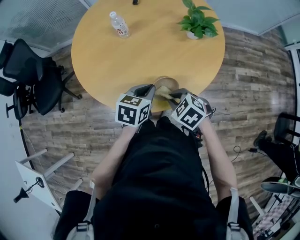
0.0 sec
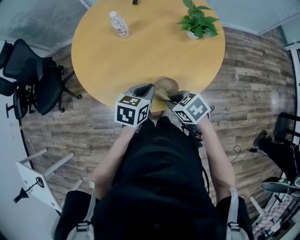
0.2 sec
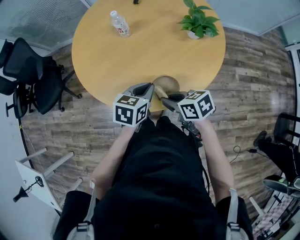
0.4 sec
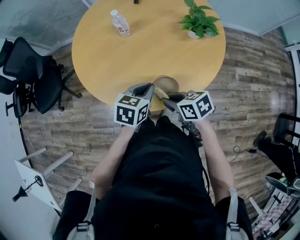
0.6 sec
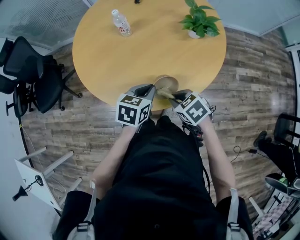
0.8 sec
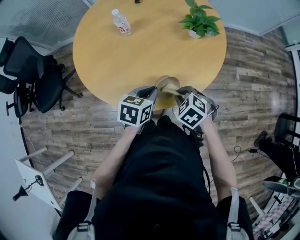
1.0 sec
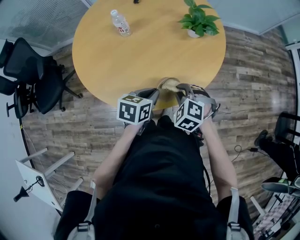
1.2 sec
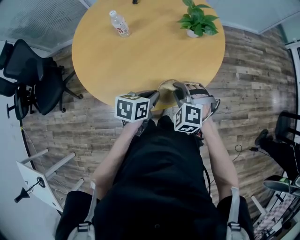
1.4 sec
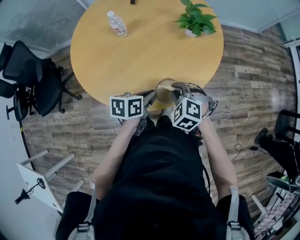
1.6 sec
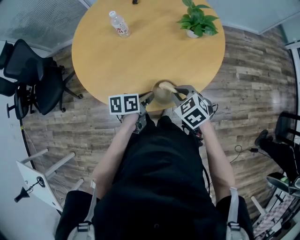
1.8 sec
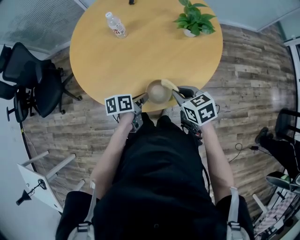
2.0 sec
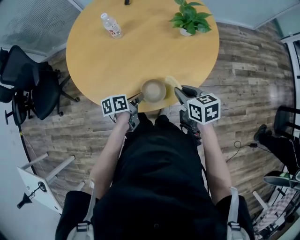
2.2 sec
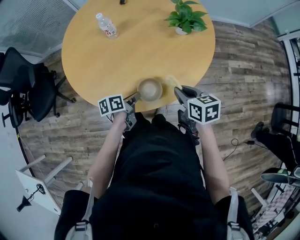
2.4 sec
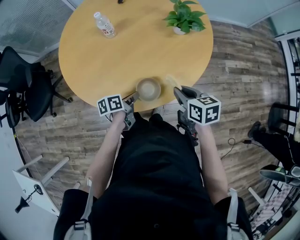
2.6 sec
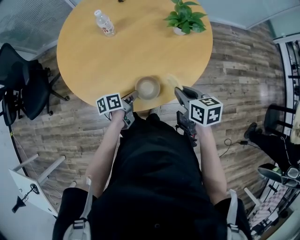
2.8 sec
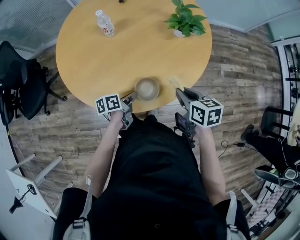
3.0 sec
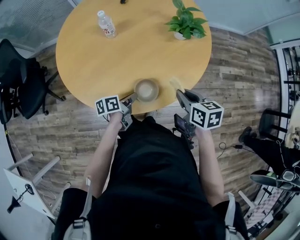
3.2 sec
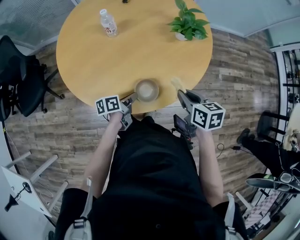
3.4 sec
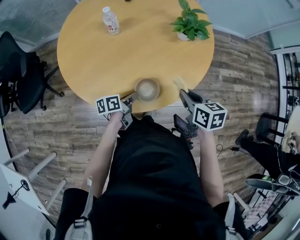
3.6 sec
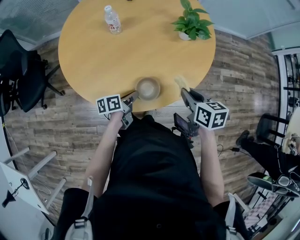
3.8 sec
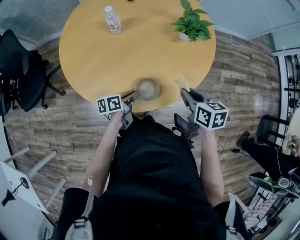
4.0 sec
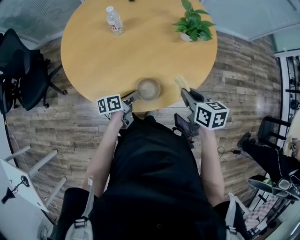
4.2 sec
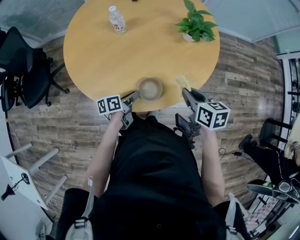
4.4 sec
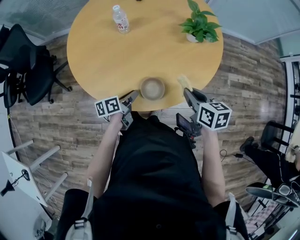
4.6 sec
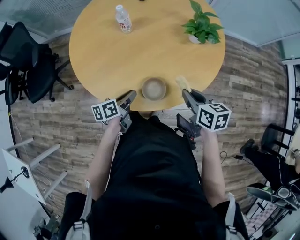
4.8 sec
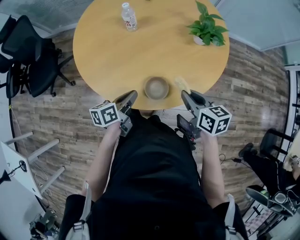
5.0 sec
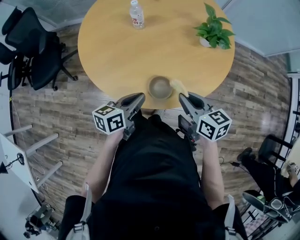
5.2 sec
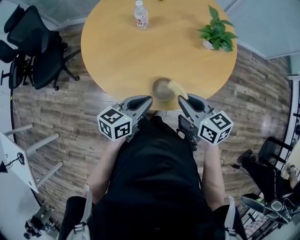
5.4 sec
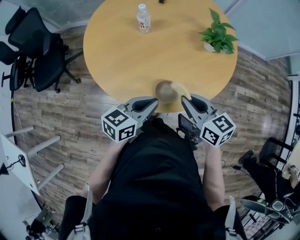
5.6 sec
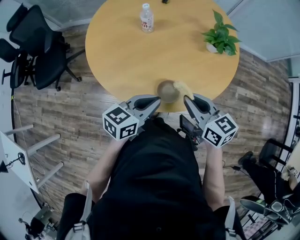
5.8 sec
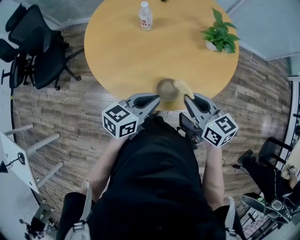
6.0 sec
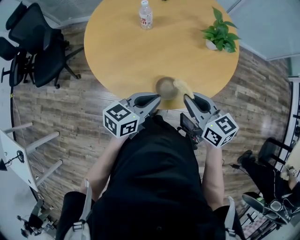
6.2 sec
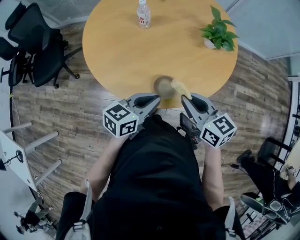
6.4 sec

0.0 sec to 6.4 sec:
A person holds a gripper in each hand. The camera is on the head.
0.0 sec to 1.6 sec: The right gripper turns by approximately 30 degrees. The left gripper rotates some 20 degrees.
1.6 sec to 3.2 sec: The left gripper travels downward by roughly 10 cm, and rotates approximately 30 degrees. The right gripper heads to the right, covering roughly 10 cm, and rolls clockwise, seen from behind, by approximately 70 degrees.
3.2 sec to 4.8 sec: The left gripper changes place by roughly 5 cm.
4.8 sec to 6.4 sec: The right gripper shifts some 10 cm to the left and upward, and swivels roughly 20 degrees. Meanwhile the left gripper heads upward and to the right, covering approximately 15 cm, and changes its angle by approximately 30 degrees.

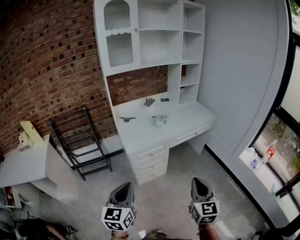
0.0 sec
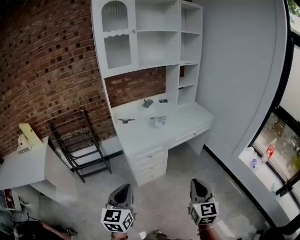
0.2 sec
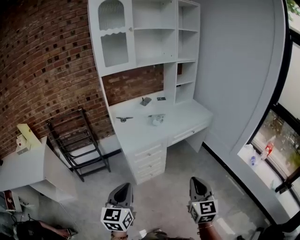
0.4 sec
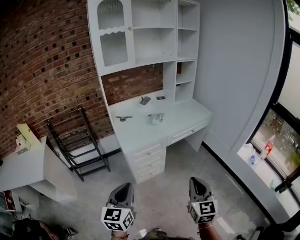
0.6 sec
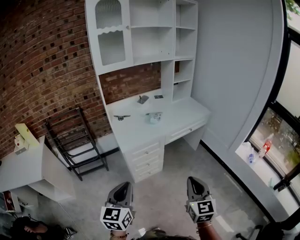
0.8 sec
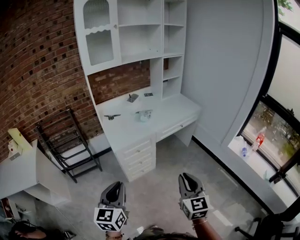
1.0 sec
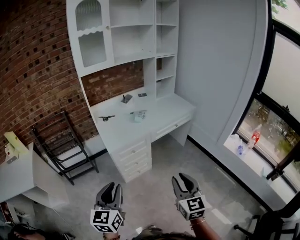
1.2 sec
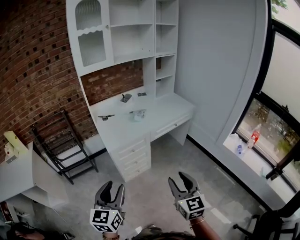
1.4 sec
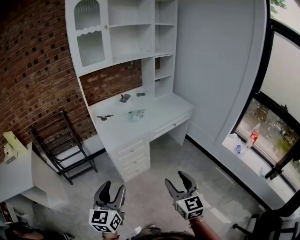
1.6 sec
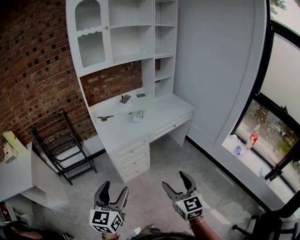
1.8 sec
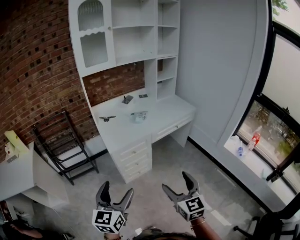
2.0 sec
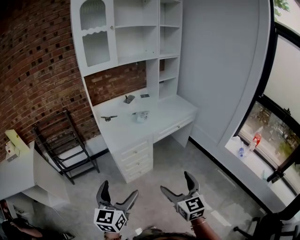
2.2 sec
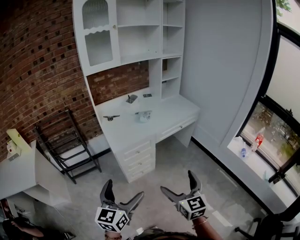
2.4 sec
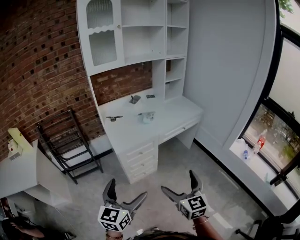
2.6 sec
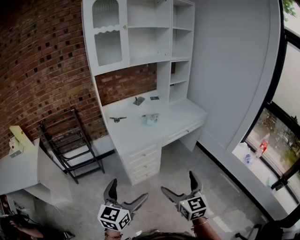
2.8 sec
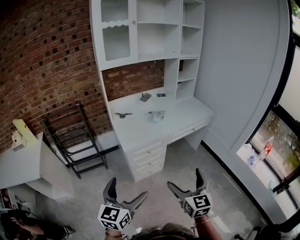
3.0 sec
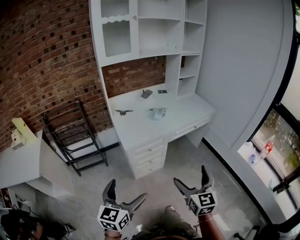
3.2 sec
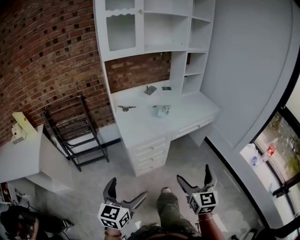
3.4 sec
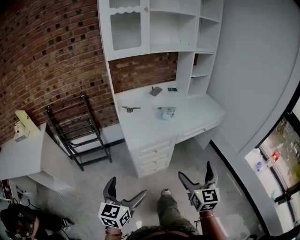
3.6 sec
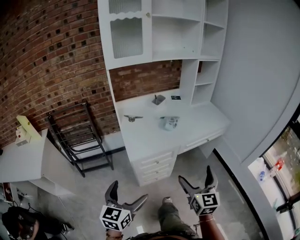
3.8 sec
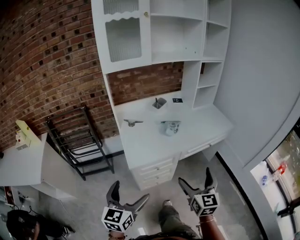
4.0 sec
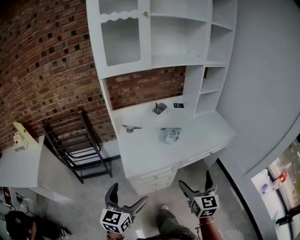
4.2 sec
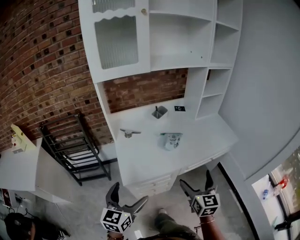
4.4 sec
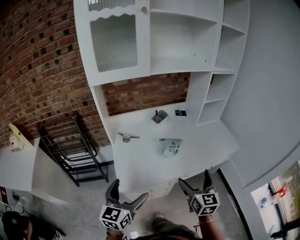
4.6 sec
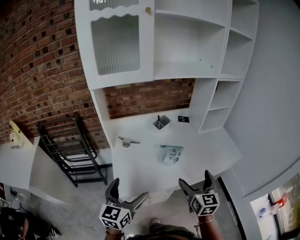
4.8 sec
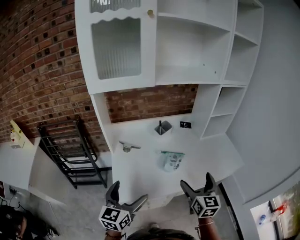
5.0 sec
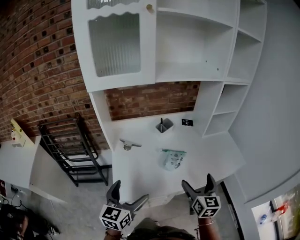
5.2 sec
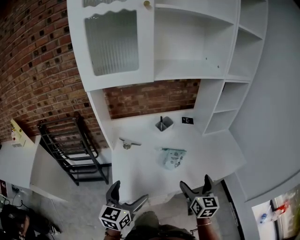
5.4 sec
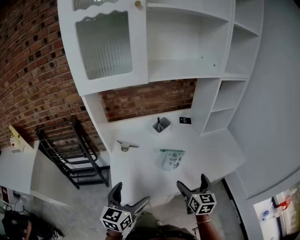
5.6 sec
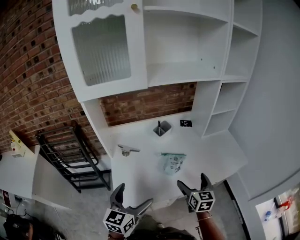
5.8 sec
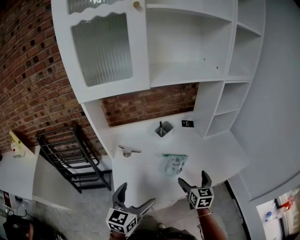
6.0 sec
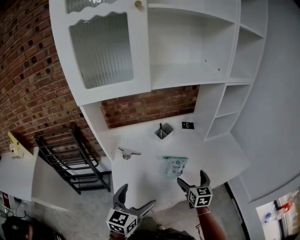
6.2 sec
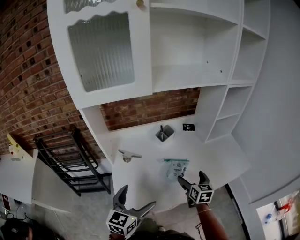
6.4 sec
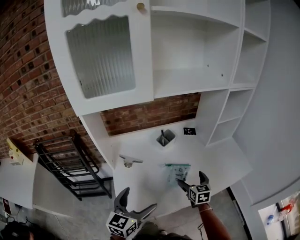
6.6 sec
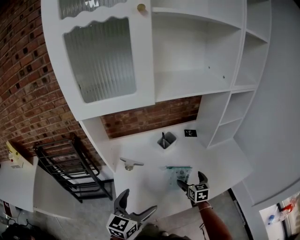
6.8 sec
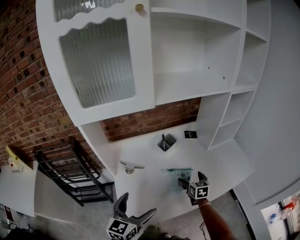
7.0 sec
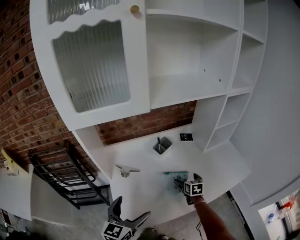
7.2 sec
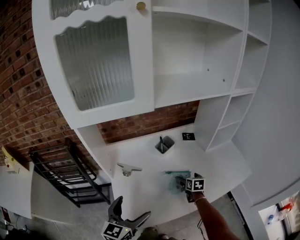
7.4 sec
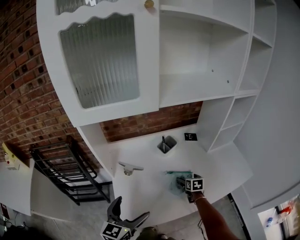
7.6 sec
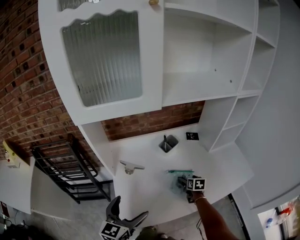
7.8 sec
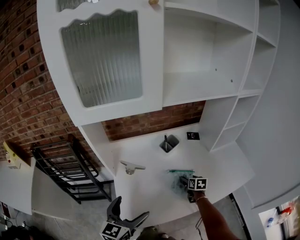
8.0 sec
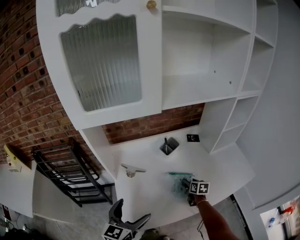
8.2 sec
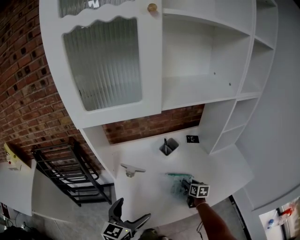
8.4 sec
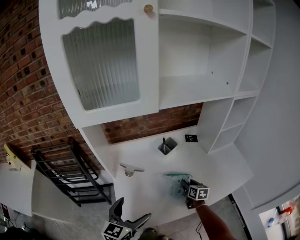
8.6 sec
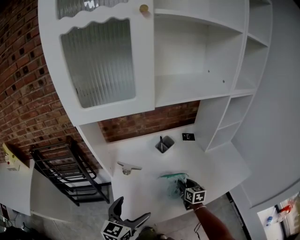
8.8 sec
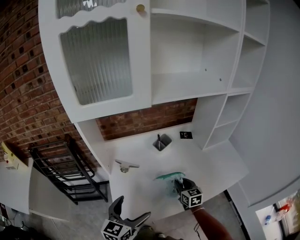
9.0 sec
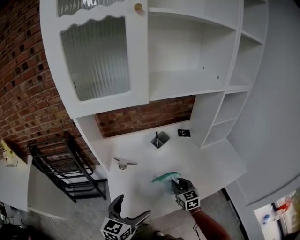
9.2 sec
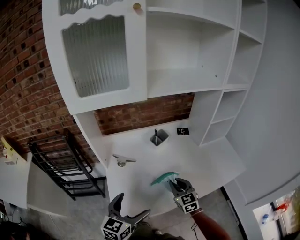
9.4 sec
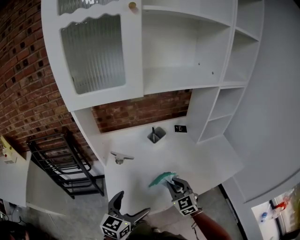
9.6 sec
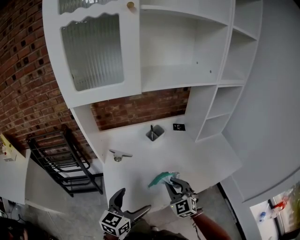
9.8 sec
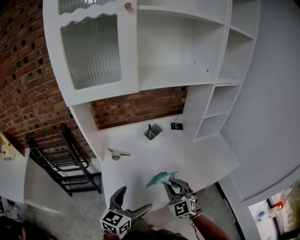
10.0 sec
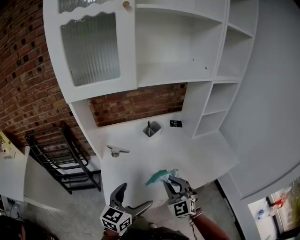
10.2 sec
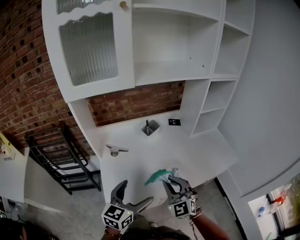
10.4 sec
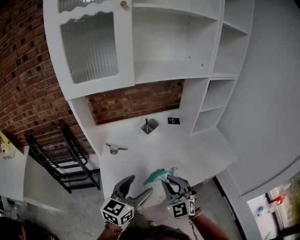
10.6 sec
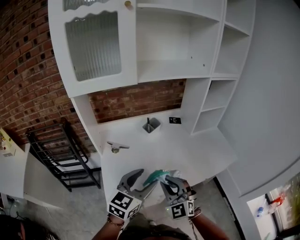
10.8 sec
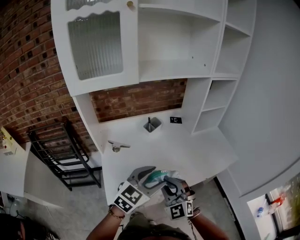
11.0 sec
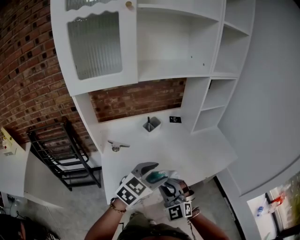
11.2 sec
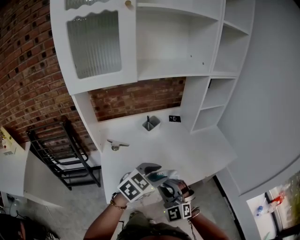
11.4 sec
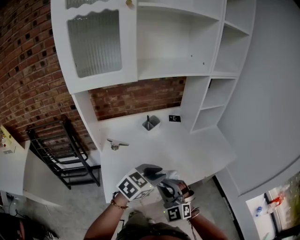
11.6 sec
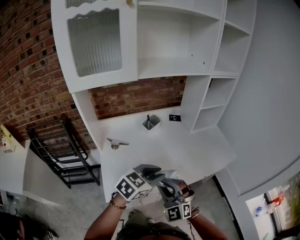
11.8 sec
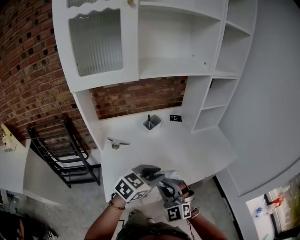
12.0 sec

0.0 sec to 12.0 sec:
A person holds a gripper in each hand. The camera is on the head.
0.0 sec to 1.6 sec: The right gripper opens. Meanwhile the left gripper opens.
1.6 sec to 3.0 sec: The right gripper goes about 5 cm forward, and opens up. Meanwhile the left gripper opens its fingers.
3.0 sec to 4.4 sec: Both grippers travel together forward, roughly 35 cm.
4.4 sec to 6.0 sec: The two grippers go approximately 20 cm forward.
6.0 sec to 7.6 sec: The right gripper goes approximately 20 cm forward and downward, and rotates roughly 30 degrees. Meanwhile the left gripper shifts some 10 cm to the left and forward.
7.6 sec to 9.0 sec: The right gripper shifts roughly 10 cm upward and backward, swivels about 20 degrees, and closes.
9.0 sec to 10.4 sec: The left gripper moves to the right, approximately 10 cm; the right gripper moves backward and upward, approximately 20 cm, and twists some 40 degrees counterclockwise, seen from behind.
10.4 sec to 12.0 sec: The right gripper moves backward, approximately 5 cm; the left gripper is displaced to the right by roughly 10 cm, turns by some 30 degrees, and closes up.

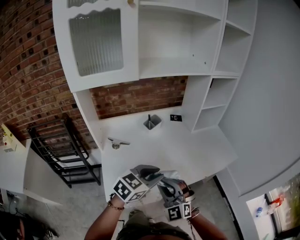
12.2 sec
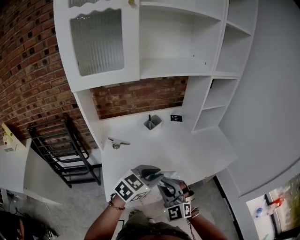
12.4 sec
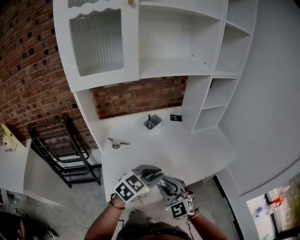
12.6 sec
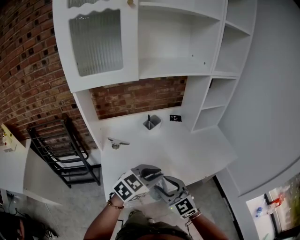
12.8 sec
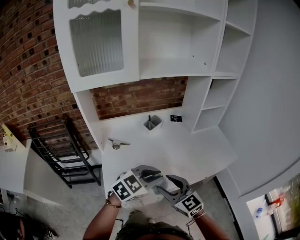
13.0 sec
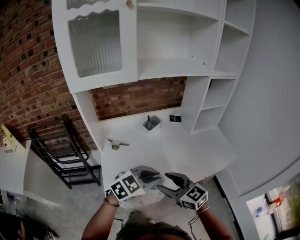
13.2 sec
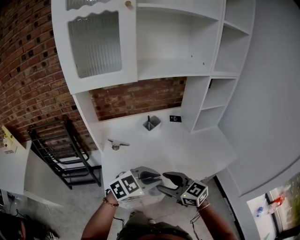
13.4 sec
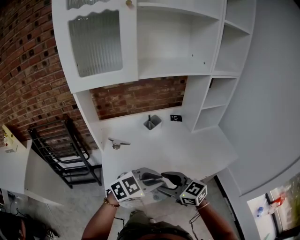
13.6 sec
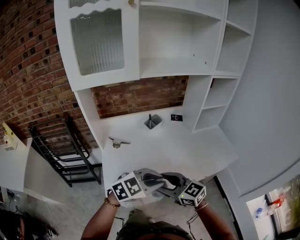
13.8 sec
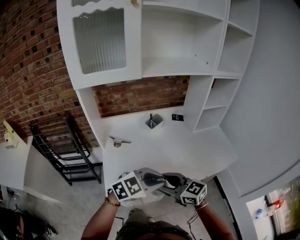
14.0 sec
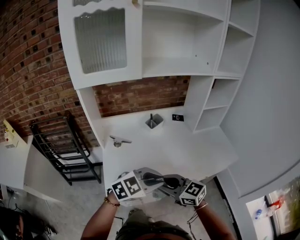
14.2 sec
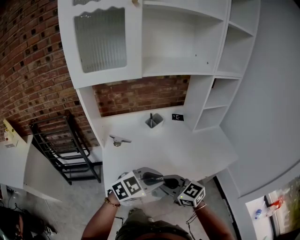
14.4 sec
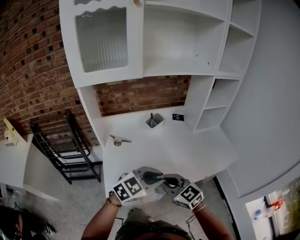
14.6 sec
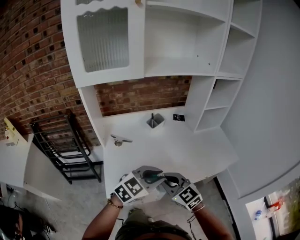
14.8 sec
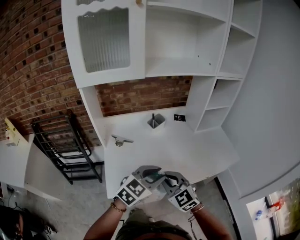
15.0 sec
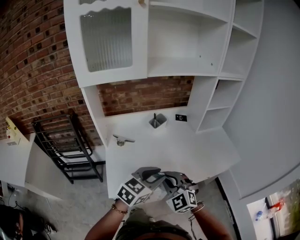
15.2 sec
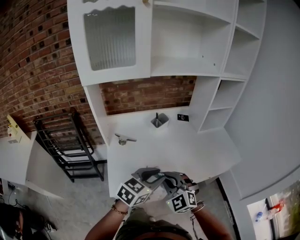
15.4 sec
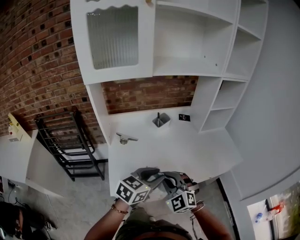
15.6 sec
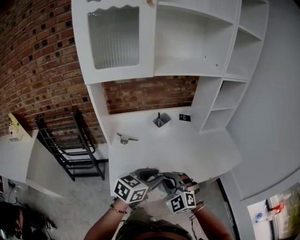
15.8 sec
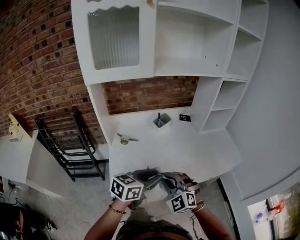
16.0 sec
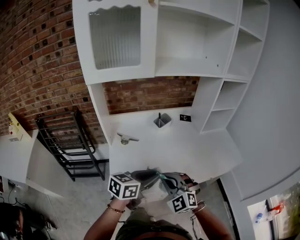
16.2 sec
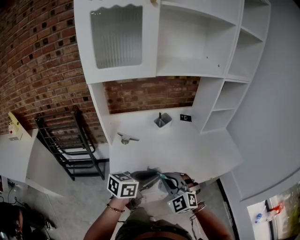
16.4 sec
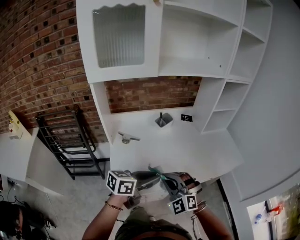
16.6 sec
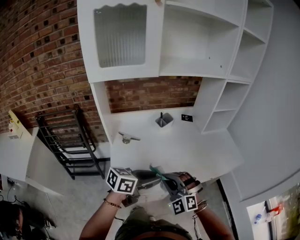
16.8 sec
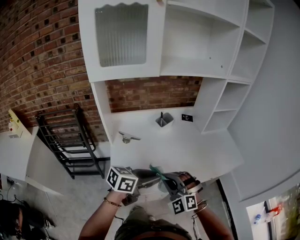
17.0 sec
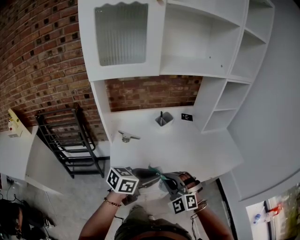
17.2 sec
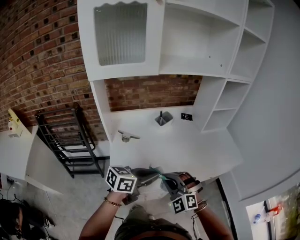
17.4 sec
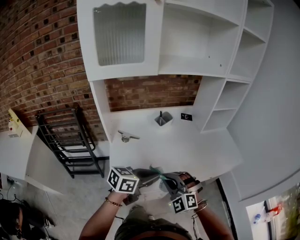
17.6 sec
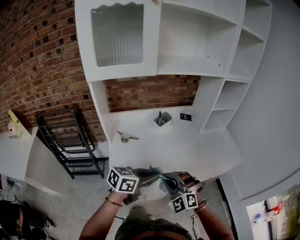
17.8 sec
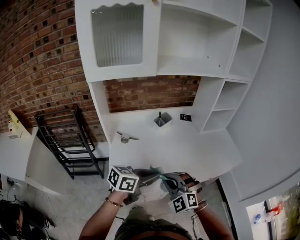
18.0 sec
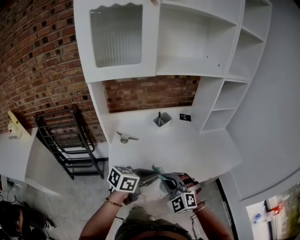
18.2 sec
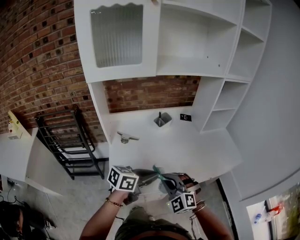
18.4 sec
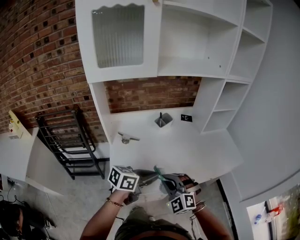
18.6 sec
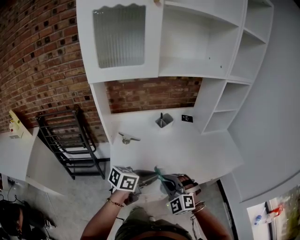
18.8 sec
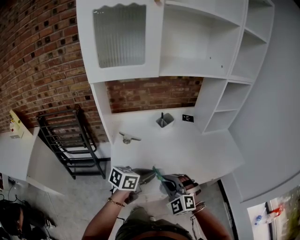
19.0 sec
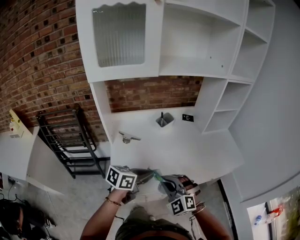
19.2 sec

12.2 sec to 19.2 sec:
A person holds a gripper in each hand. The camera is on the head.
12.2 sec to 13.6 sec: The right gripper rotates around the line of its fingers by roughly 50 degrees, clockwise from behind.
13.6 sec to 15.0 sec: The right gripper rotates approximately 30 degrees, and closes. Meanwhile the left gripper swivels roughly 20 degrees.
15.0 sec to 16.4 sec: The left gripper shifts roughly 5 cm to the left, and rotates some 40 degrees, while the right gripper turns by about 20 degrees.
16.4 sec to 17.8 sec: There are only small adjustments of the grippers.
17.8 sec to 19.2 sec: The left gripper moves approximately 5 cm.
